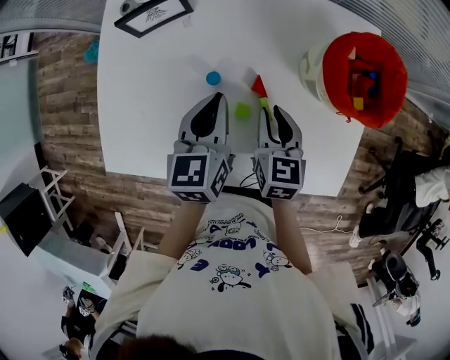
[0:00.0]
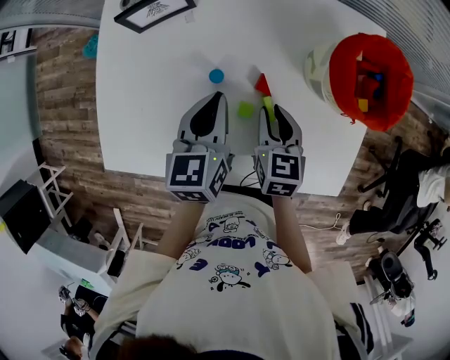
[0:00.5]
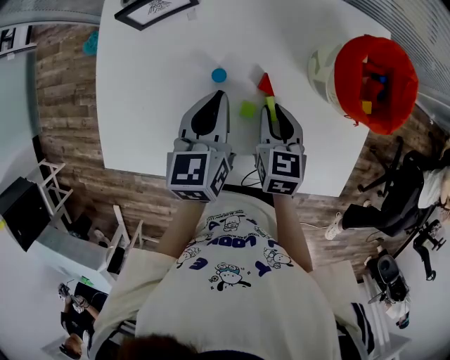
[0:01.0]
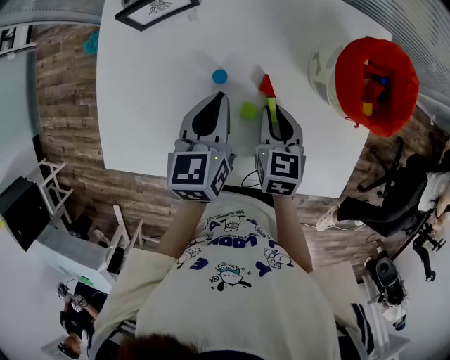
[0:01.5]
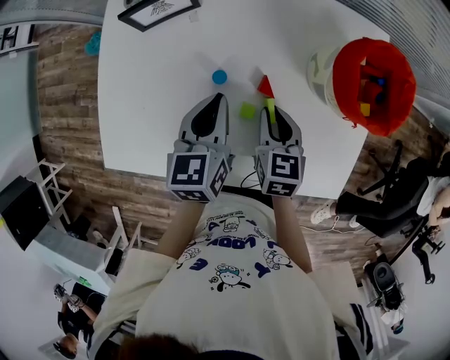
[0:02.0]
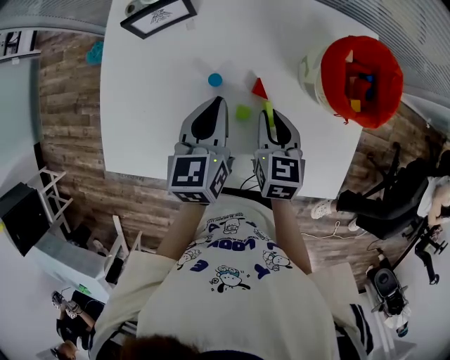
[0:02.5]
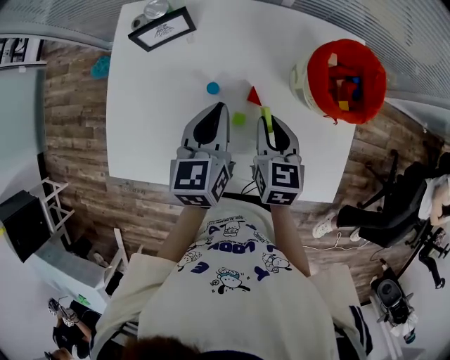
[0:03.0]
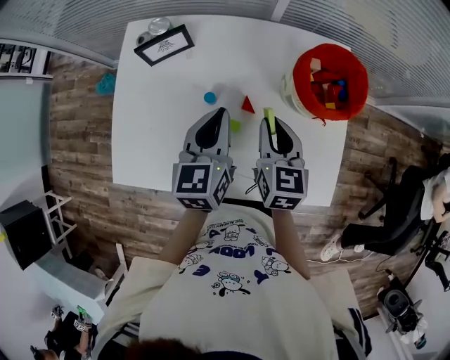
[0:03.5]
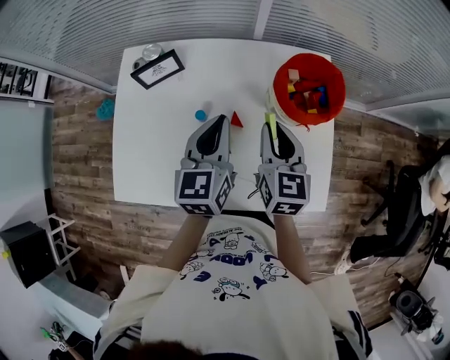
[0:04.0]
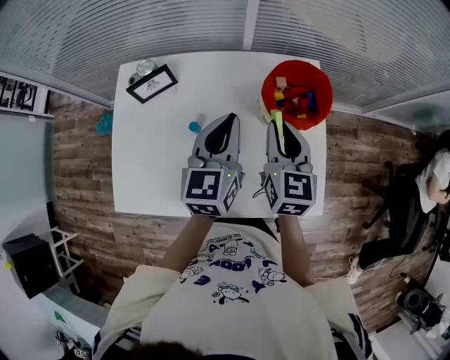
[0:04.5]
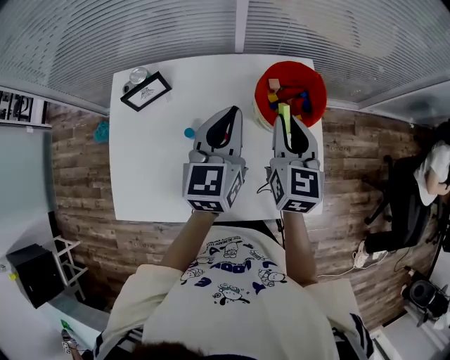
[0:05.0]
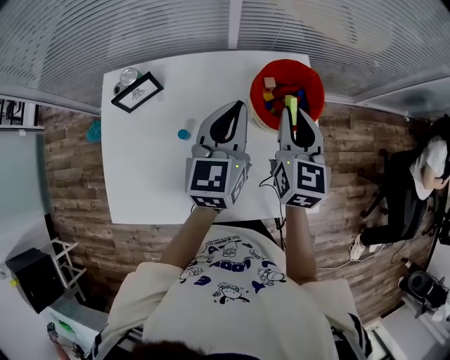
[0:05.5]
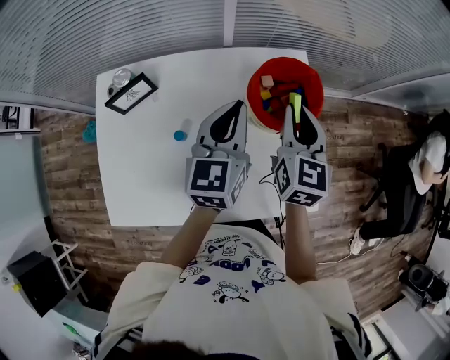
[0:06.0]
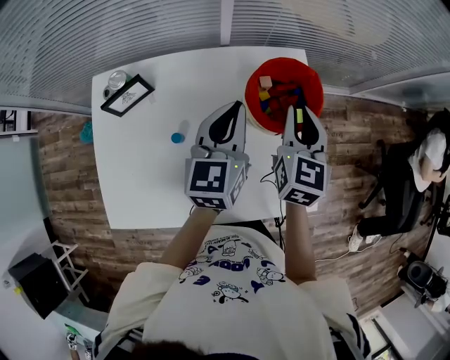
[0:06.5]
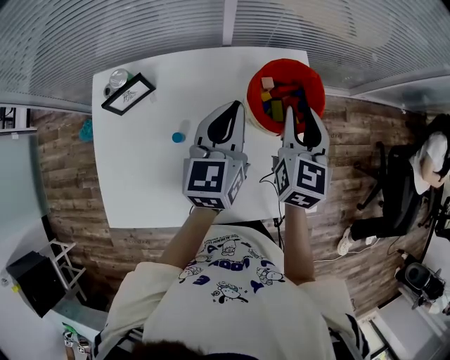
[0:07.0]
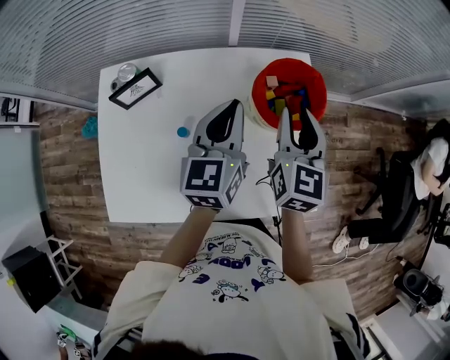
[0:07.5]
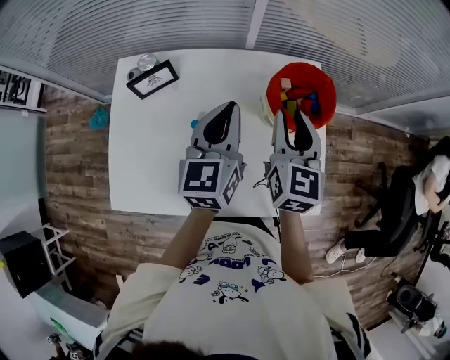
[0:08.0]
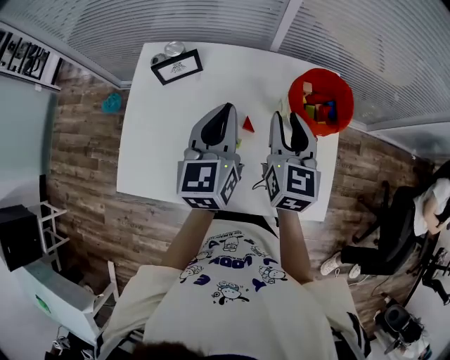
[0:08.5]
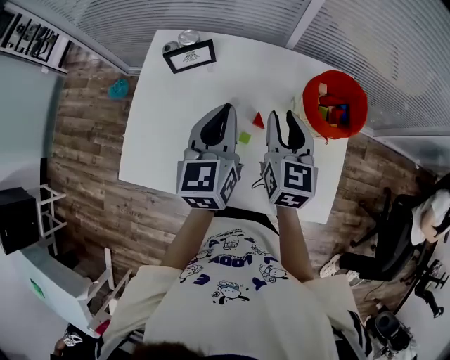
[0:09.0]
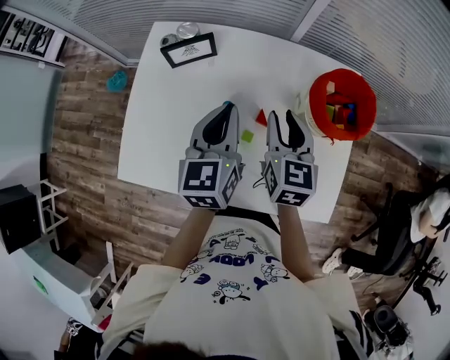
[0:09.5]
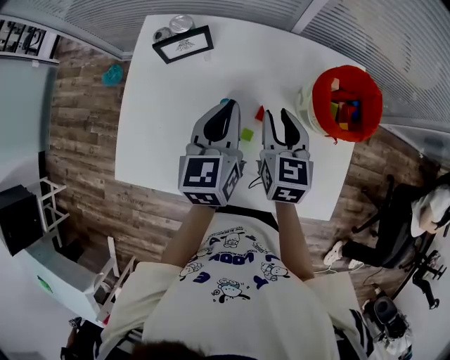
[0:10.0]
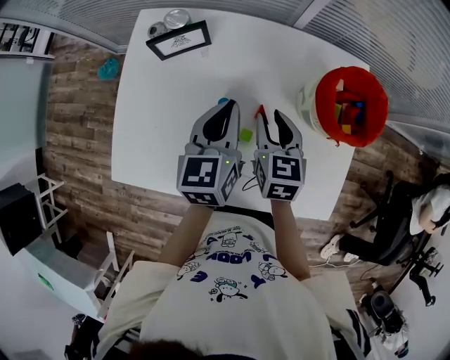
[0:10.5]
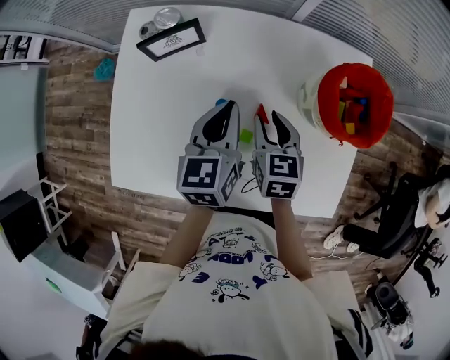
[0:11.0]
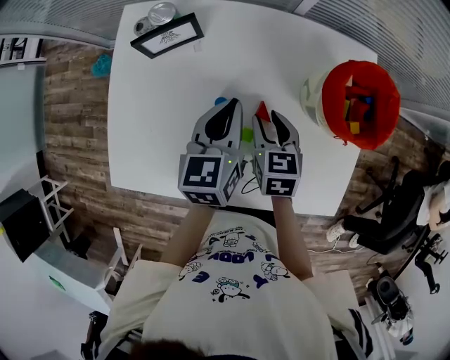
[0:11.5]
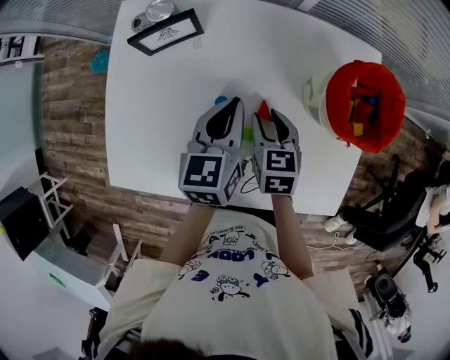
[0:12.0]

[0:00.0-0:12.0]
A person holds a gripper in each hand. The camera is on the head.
0:00.0 to 0:02.0: There are only small adjustments of the grippers.
0:02.0 to 0:04.0: The right gripper shifts approximately 15 cm upward, and rotates roughly 20 degrees. Meanwhile the left gripper shifts about 15 cm upward and to the right.
0:04.0 to 0:06.0: Both grippers travel together to the right and forward, roughly 10 cm.
0:06.0 to 0:08.0: Both grippers travel together to the left, some 5 cm.
0:08.0 to 0:10.0: The right gripper heads downward and to the left, covering approximately 15 cm, and changes its angle by roughly 20 degrees. Meanwhile the left gripper shifts some 10 cm to the left and downward.
0:10.0 to 0:12.0: The left gripper goes some 5 cm downward. Meanwhile the right gripper heads downward, covering approximately 10 cm.

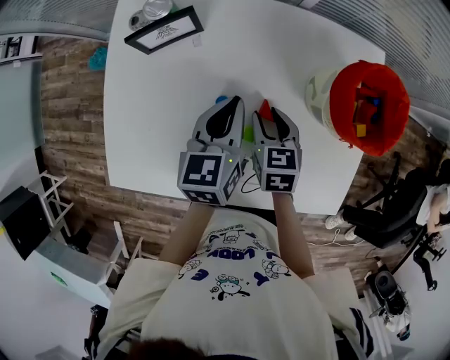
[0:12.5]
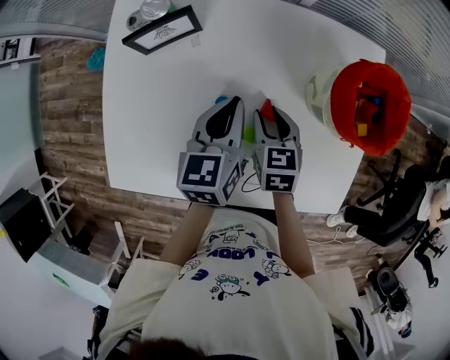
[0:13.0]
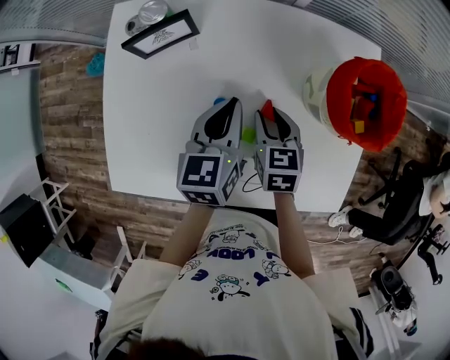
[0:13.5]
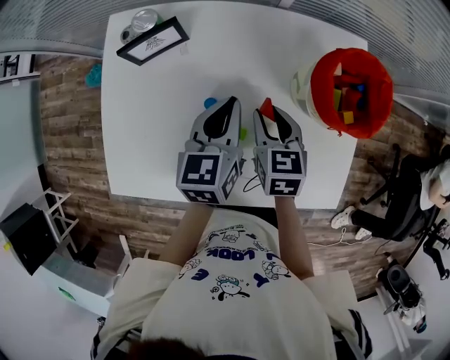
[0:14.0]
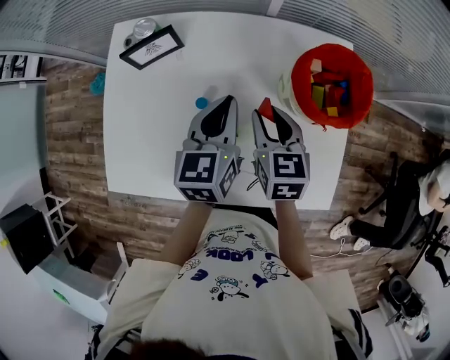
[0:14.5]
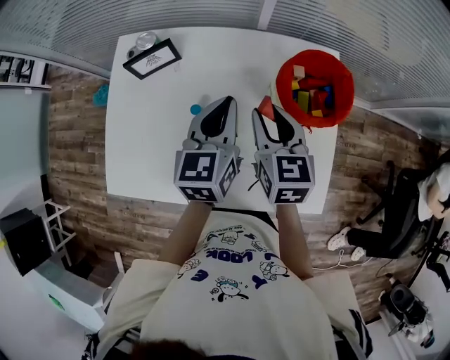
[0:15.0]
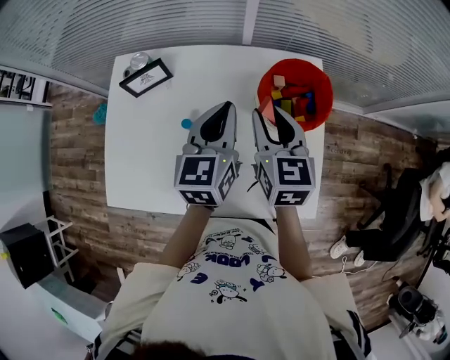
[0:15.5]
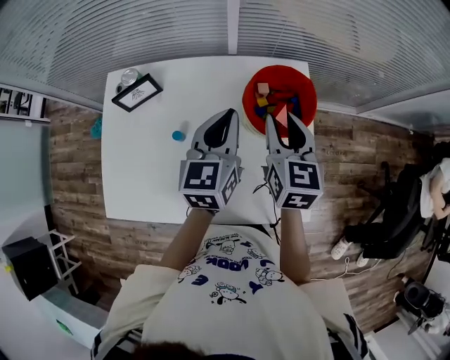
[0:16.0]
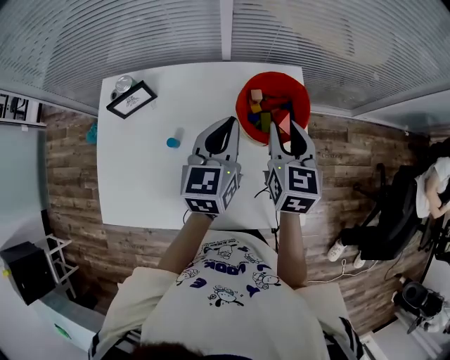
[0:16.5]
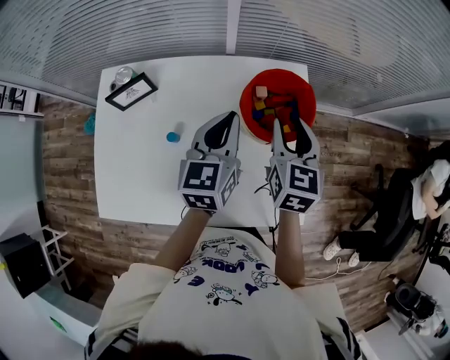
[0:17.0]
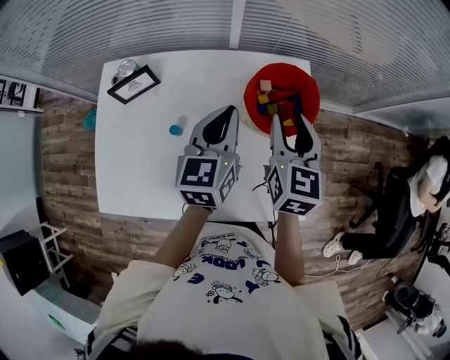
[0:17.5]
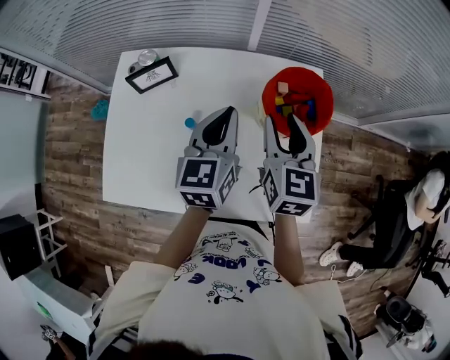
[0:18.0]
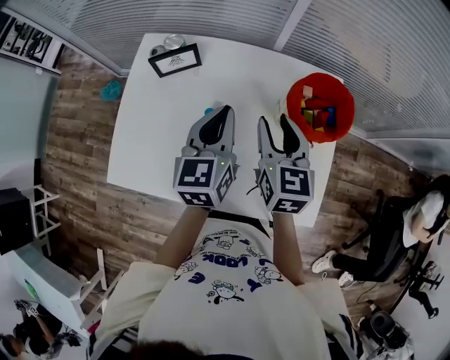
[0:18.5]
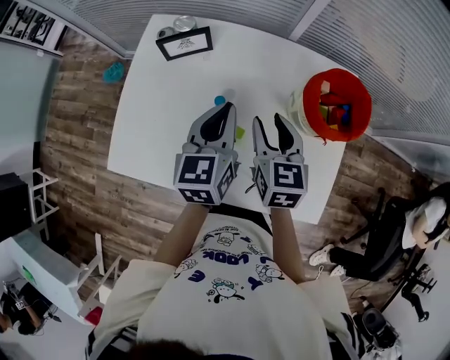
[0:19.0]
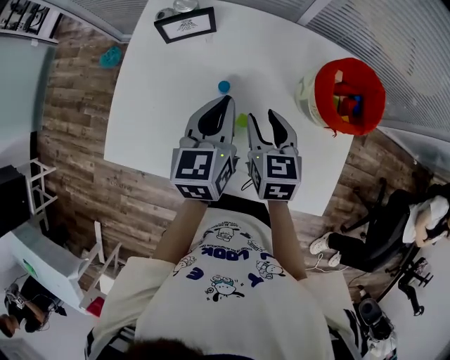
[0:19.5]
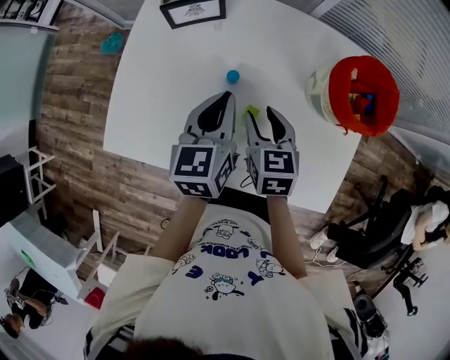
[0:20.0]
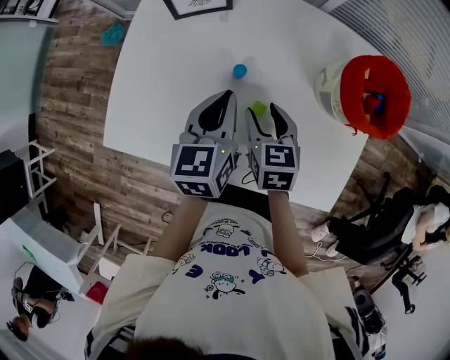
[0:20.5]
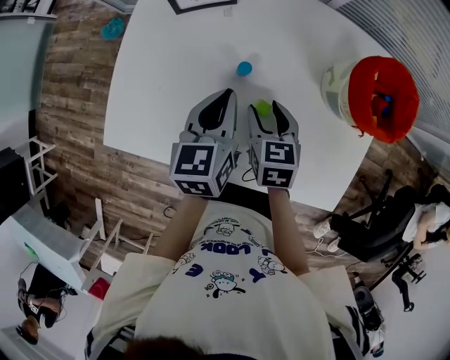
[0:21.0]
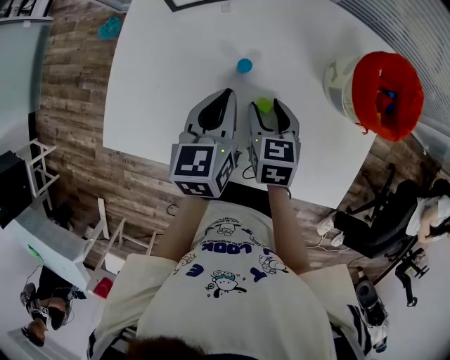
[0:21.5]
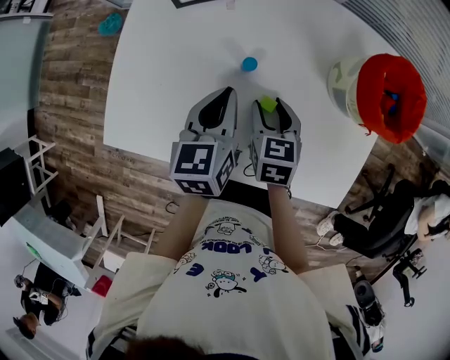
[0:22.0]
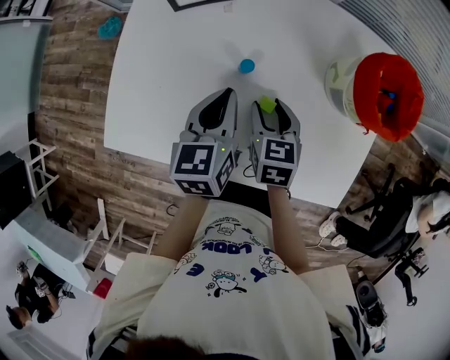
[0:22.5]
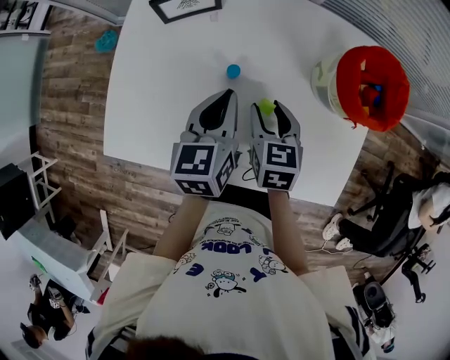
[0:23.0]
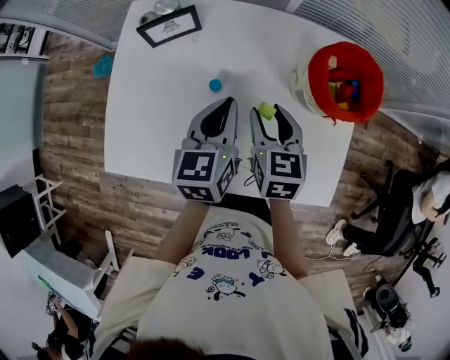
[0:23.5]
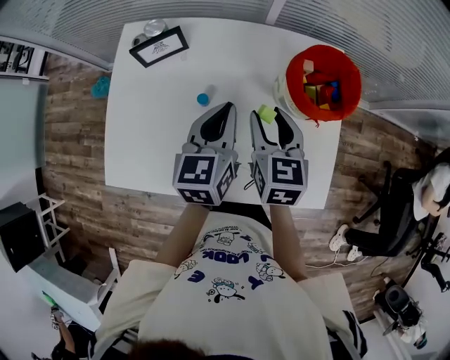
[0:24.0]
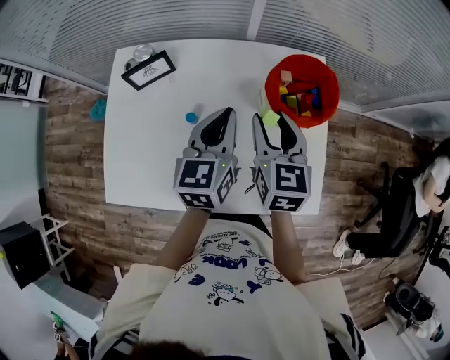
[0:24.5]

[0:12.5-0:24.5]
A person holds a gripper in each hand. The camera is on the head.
0:12.5 to 0:14.5: The left gripper travels upward by roughly 5 cm. The right gripper goes some 10 cm upward.
0:14.5 to 0:16.5: Both grippers move to the right and upward, roughly 15 cm.
0:16.5 to 0:18.5: Both grippers travel together to the left, roughly 15 cm.
0:18.5 to 0:20.5: The left gripper is displaced downward and to the left by about 10 cm; the right gripper is displaced downward and to the left by some 20 cm, and turns by some 20 degrees.
0:20.5 to 0:22.5: The grippers stay close to where they were, moving slightly.
0:22.5 to 0:24.5: The left gripper shifts roughly 15 cm to the right and upward. The right gripper heads upward and to the right, covering approximately 20 cm, and swivels roughly 30 degrees.

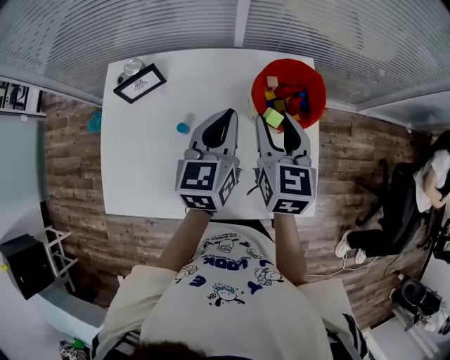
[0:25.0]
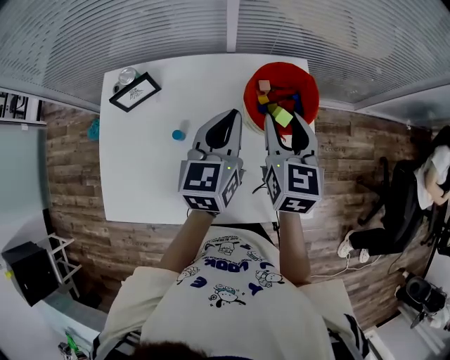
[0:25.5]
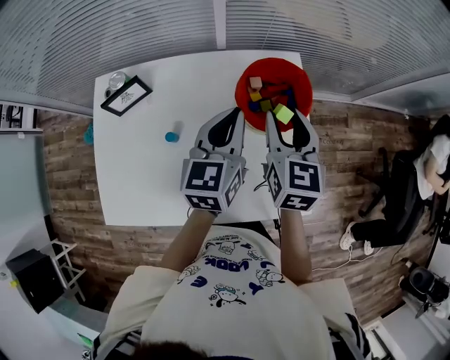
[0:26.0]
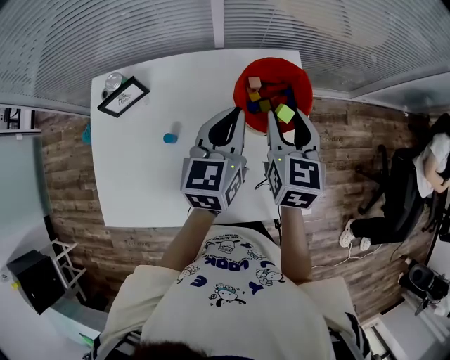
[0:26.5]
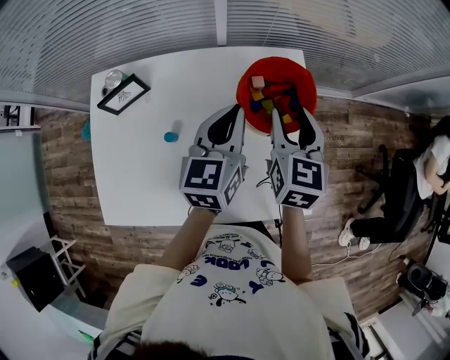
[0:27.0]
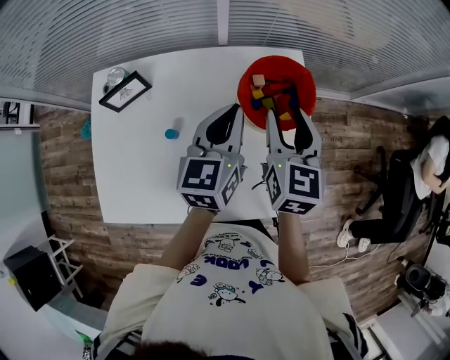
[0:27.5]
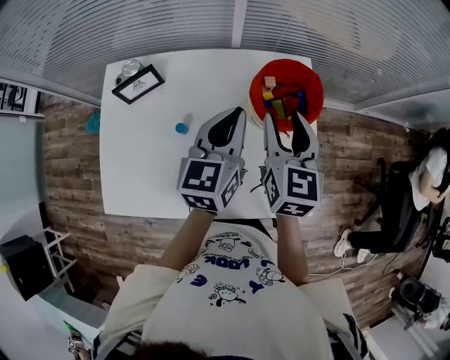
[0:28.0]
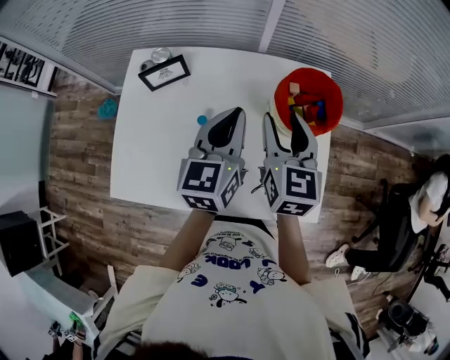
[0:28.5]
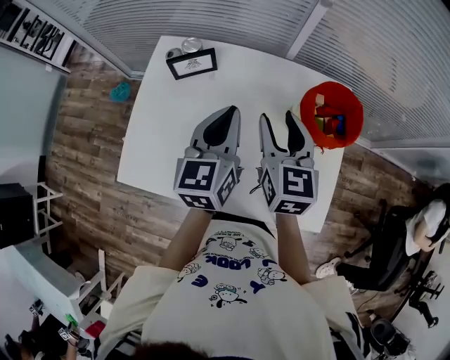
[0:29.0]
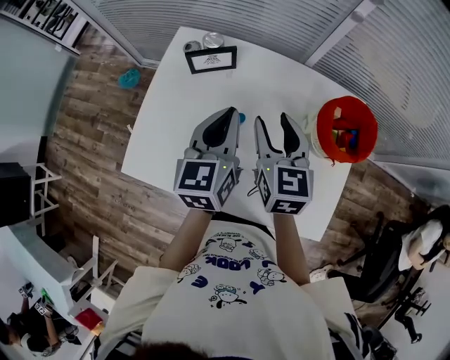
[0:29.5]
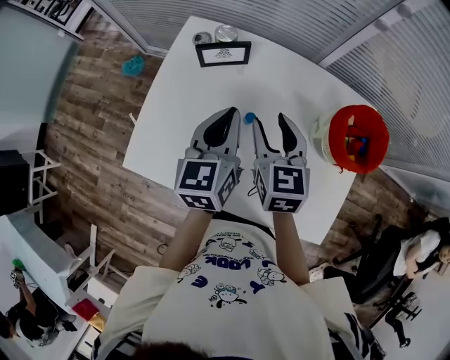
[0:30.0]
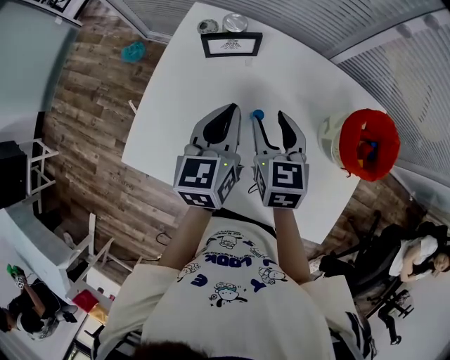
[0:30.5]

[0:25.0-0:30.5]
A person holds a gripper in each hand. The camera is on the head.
0:25.0 to 0:27.0: The right gripper shifts approximately 5 cm to the right. Meanwhile the left gripper changes place by roughly 5 cm.
0:27.0 to 0:28.5: Both grippers travel together to the left and backward, about 10 cm.
0:28.5 to 0:30.5: The grippers both shift to the left and downward by about 20 cm. The right gripper changes its angle by some 30 degrees. Meanwhile the left gripper rotates approximately 20 degrees.
